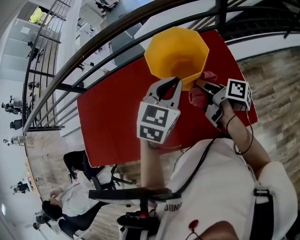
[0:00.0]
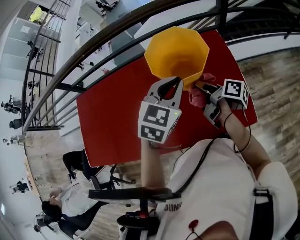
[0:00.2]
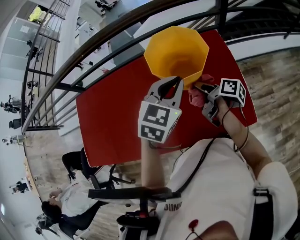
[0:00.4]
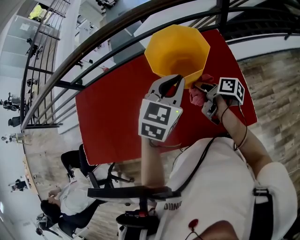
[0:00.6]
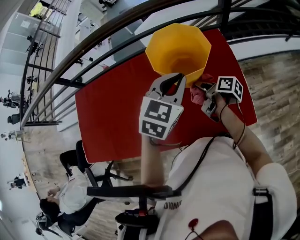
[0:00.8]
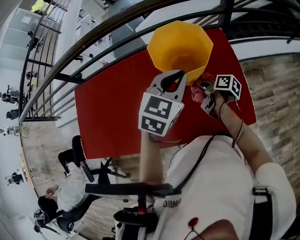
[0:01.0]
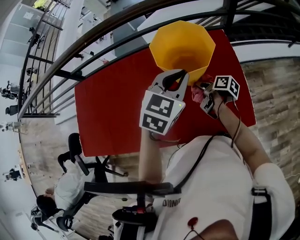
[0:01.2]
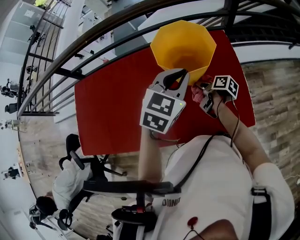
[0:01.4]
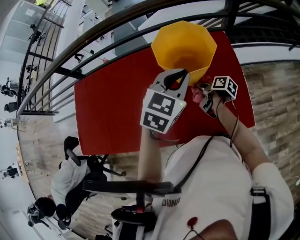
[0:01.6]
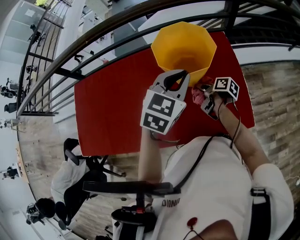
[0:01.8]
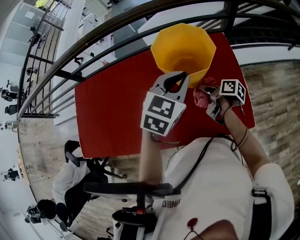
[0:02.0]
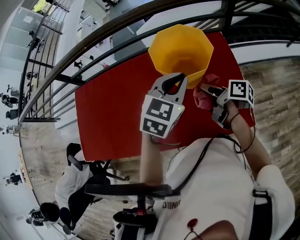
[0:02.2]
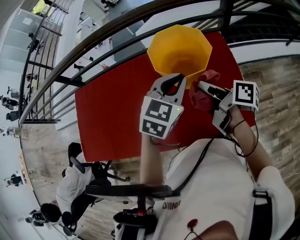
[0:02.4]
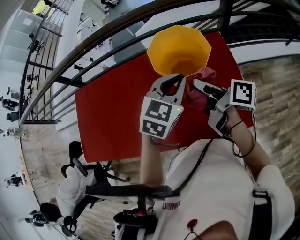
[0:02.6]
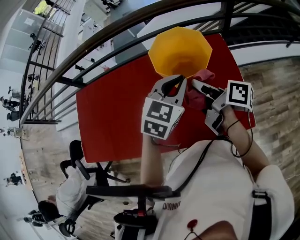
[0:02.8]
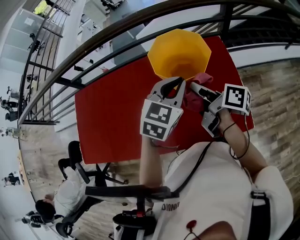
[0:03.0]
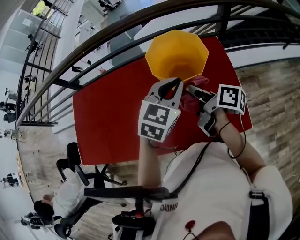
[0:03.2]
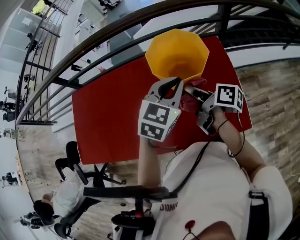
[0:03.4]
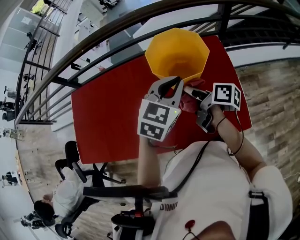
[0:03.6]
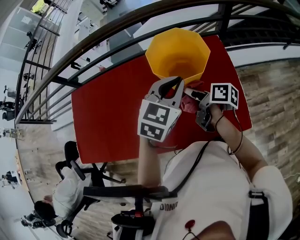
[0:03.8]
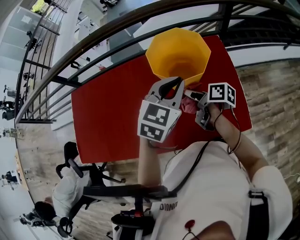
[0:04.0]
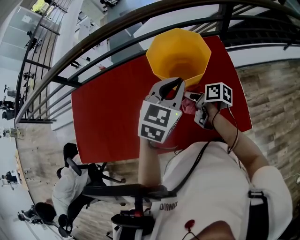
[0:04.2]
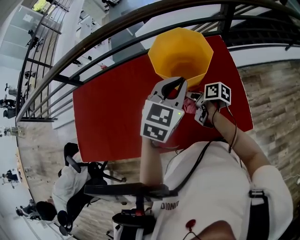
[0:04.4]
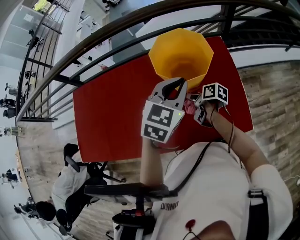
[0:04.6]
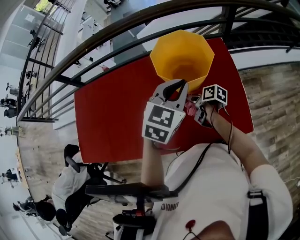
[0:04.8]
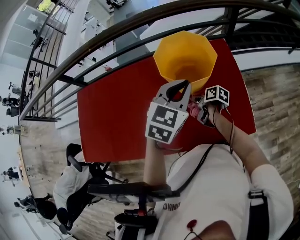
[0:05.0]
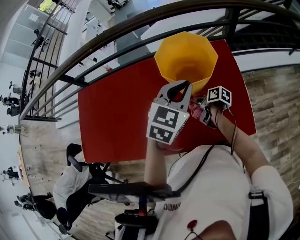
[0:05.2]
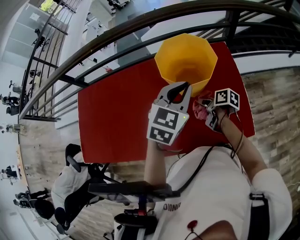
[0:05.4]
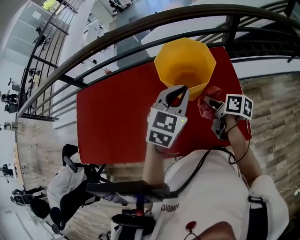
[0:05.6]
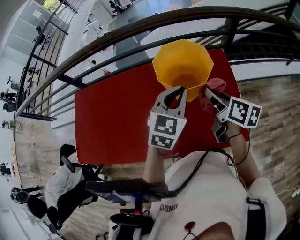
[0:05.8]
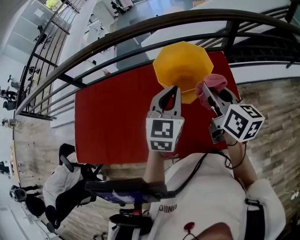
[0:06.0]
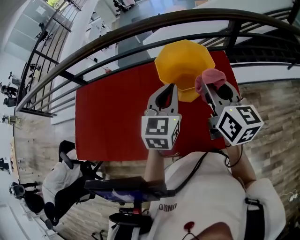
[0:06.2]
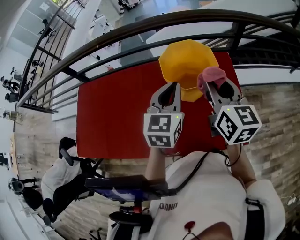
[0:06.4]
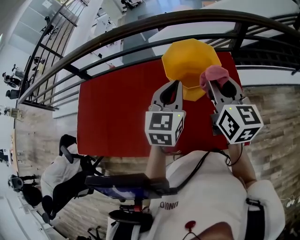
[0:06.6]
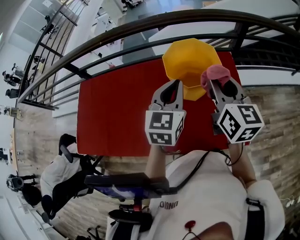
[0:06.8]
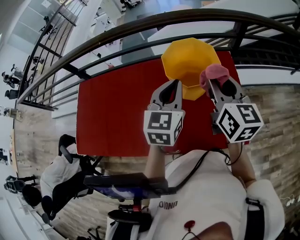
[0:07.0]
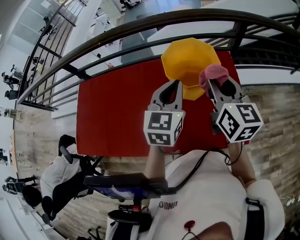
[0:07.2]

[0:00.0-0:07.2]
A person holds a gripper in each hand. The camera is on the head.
0.0 to 1.4 s: The right gripper shifts some 15 cm downward, and turns by roughly 20 degrees.
1.4 to 2.8 s: The right gripper is displaced upward by some 20 cm, and changes its angle by approximately 30 degrees.
2.8 to 4.4 s: The right gripper goes approximately 15 cm downward, and turns by approximately 20 degrees.
4.4 to 5.8 s: The right gripper moves upward and to the right, roughly 20 cm, and rotates about 30 degrees.
5.8 to 7.2 s: The right gripper heads upward, covering roughly 10 cm, and rotates about 40 degrees.

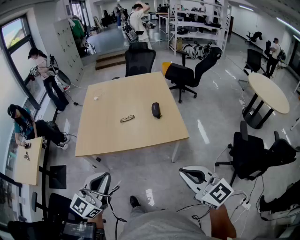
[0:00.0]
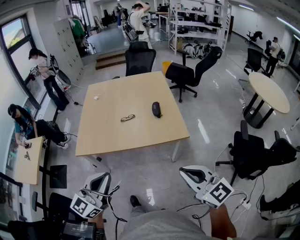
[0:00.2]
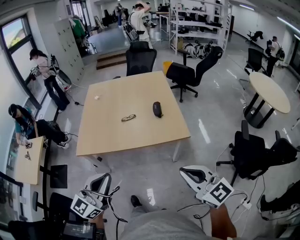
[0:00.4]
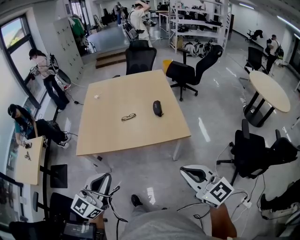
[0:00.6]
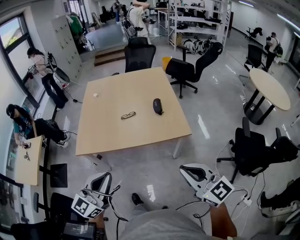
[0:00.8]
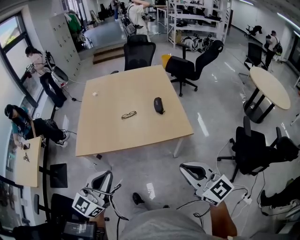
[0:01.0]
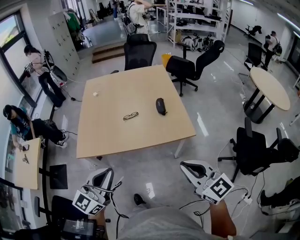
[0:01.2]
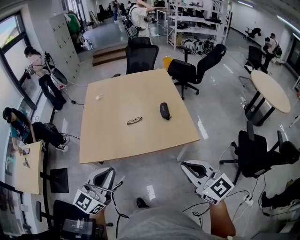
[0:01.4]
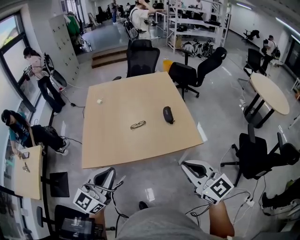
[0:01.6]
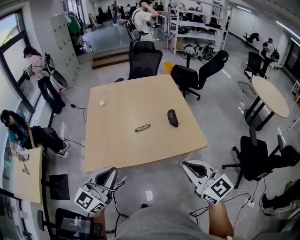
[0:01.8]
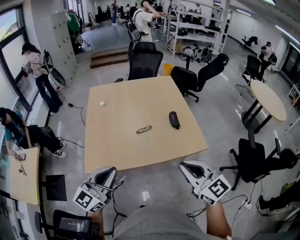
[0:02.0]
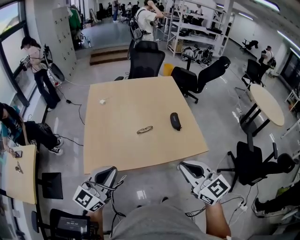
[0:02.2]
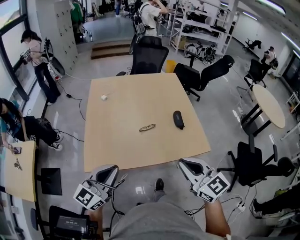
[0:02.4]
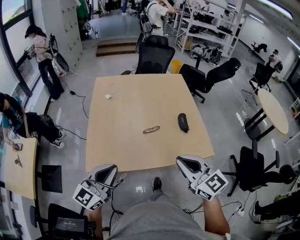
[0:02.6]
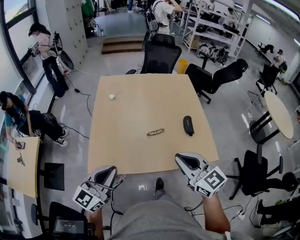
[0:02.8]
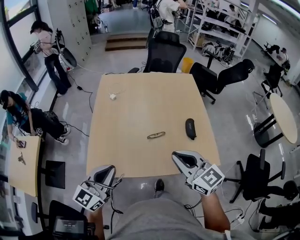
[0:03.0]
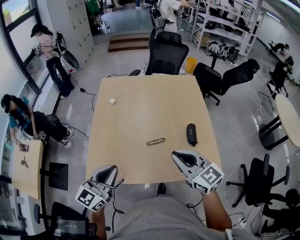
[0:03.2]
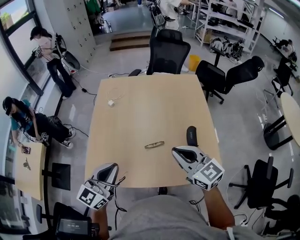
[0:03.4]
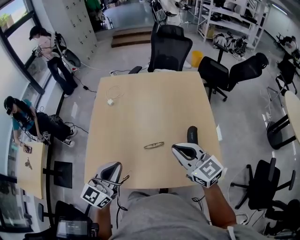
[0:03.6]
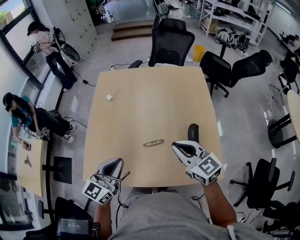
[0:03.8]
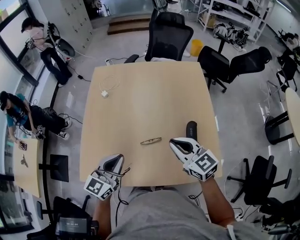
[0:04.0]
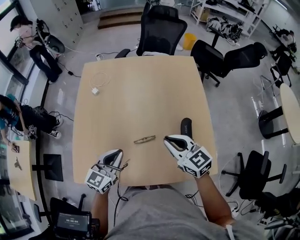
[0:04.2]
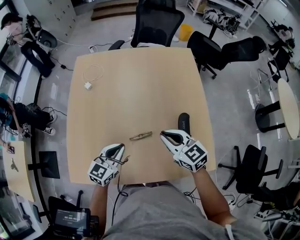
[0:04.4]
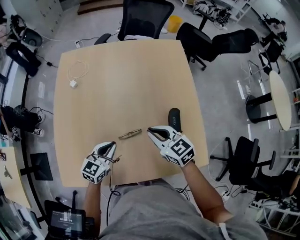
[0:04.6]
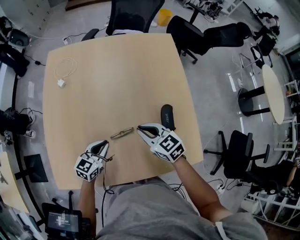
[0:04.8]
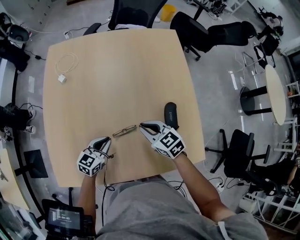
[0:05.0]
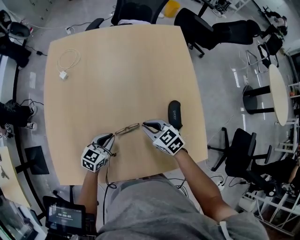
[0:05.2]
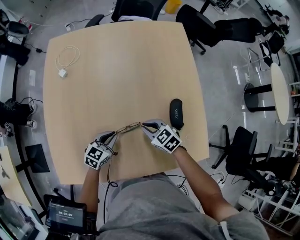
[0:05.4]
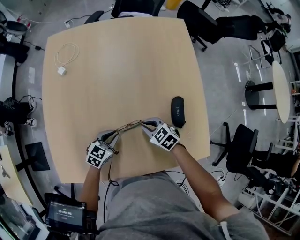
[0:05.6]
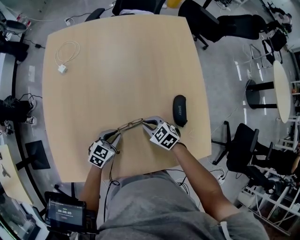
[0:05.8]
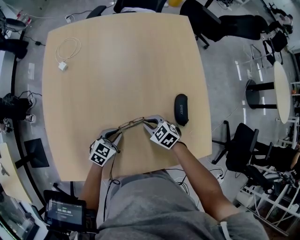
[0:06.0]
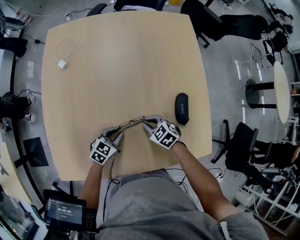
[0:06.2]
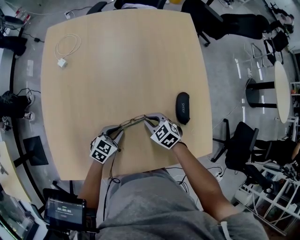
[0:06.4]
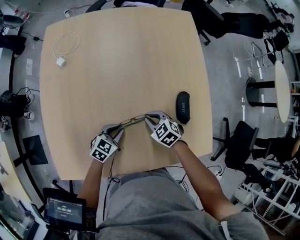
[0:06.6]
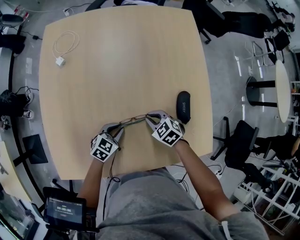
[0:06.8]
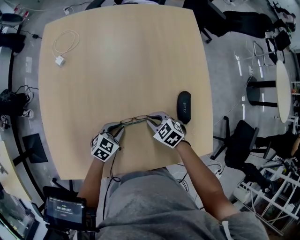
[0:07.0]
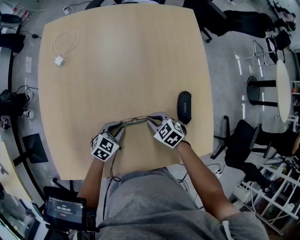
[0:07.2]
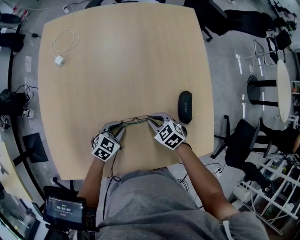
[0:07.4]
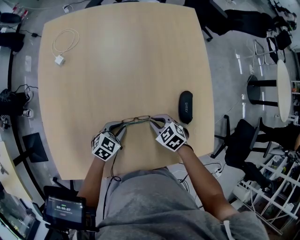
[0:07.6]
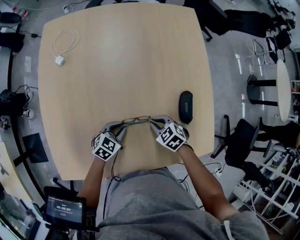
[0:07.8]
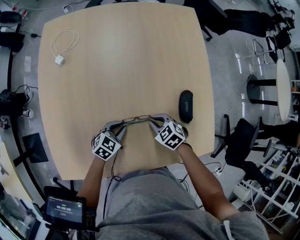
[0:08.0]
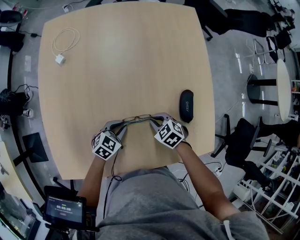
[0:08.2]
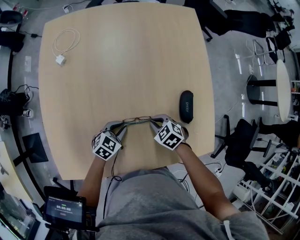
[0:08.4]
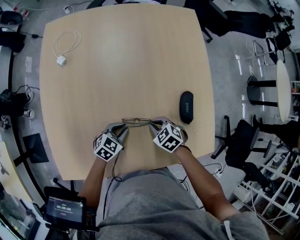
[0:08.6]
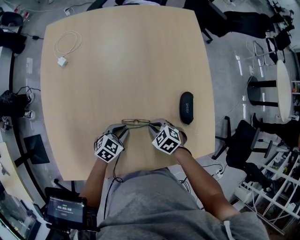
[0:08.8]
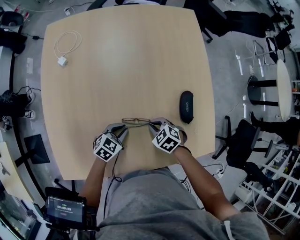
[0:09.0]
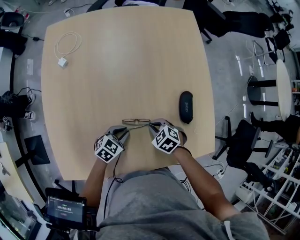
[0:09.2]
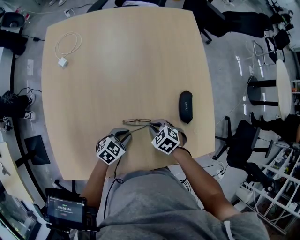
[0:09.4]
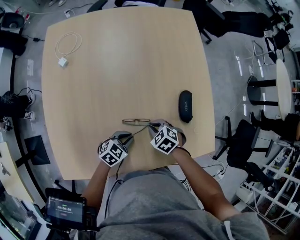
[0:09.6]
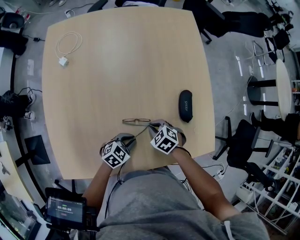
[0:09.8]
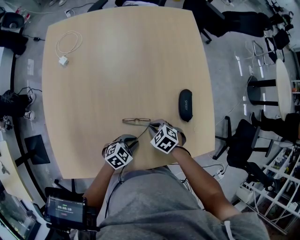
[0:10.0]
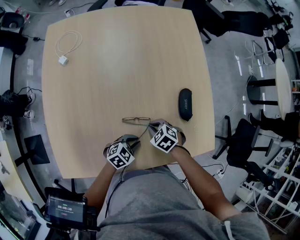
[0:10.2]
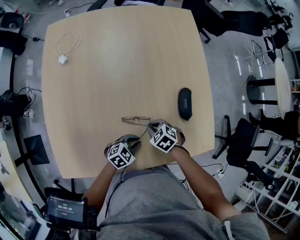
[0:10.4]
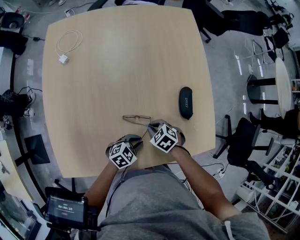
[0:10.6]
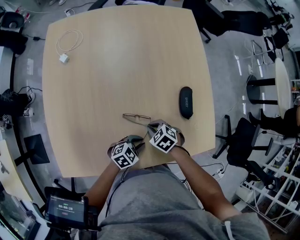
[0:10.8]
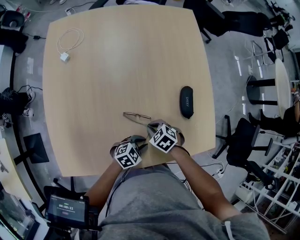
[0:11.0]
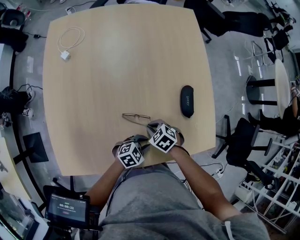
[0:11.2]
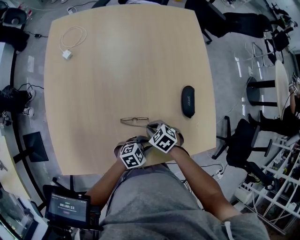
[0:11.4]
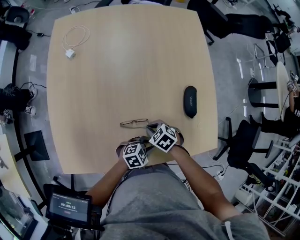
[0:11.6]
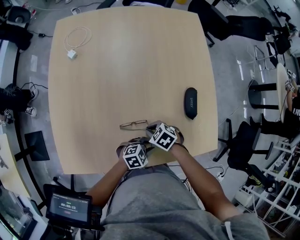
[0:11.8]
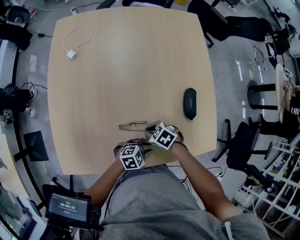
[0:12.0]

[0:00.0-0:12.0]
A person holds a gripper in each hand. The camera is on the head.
0.0 to 1.6 s: The grippers both shift forward and to the left by approximately 20 cm.
1.6 to 3.0 s: Both grippers move forward and to the left, about 25 cm.
3.0 to 4.4 s: The grippers both shift forward, downward and to the right by about 30 cm. The left gripper swivels some 20 degrees.
4.4 to 6.0 s: Both grippers travel together downward, about 20 cm. The left gripper turns by approximately 30 degrees, while the right gripper turns by about 30 degrees.
6.0 to 9.0 s: There are only small adjustments of the grippers.
9.0 to 10.4 s: The left gripper shifts by approximately 10 cm.
10.4 to 12.0 s: The left gripper changes place by about 5 cm. Meanwhile the right gripper changes place by about 5 cm.

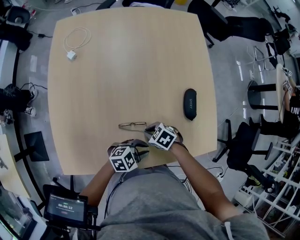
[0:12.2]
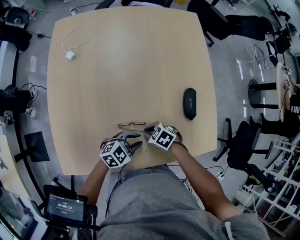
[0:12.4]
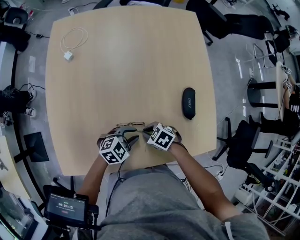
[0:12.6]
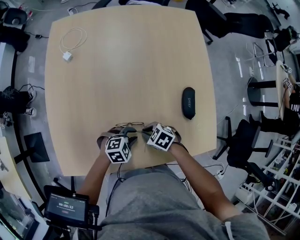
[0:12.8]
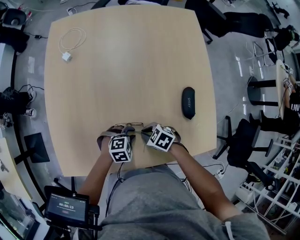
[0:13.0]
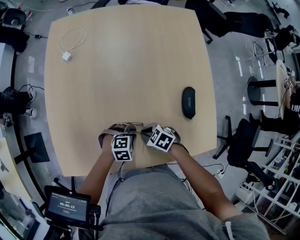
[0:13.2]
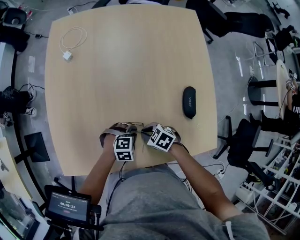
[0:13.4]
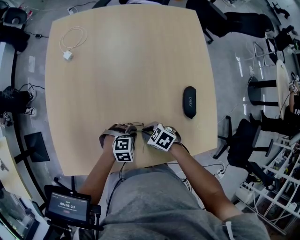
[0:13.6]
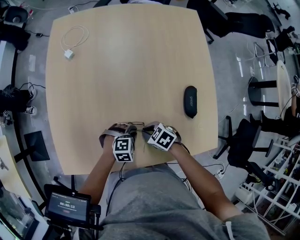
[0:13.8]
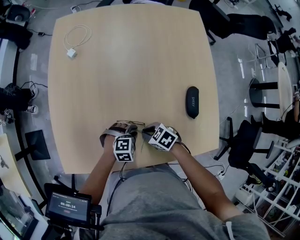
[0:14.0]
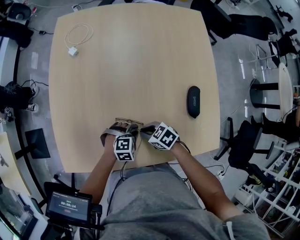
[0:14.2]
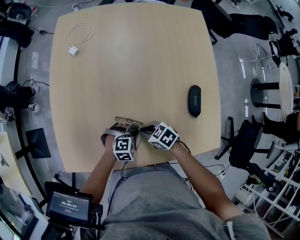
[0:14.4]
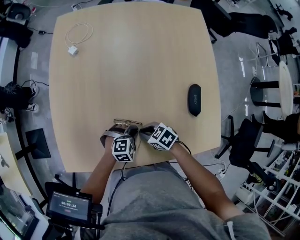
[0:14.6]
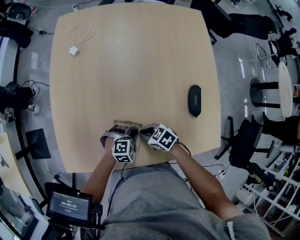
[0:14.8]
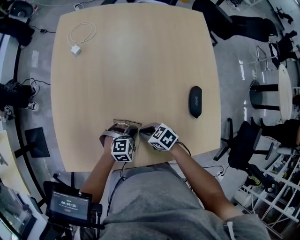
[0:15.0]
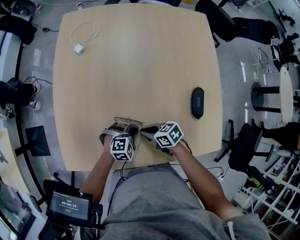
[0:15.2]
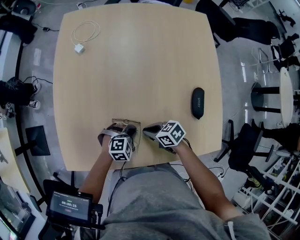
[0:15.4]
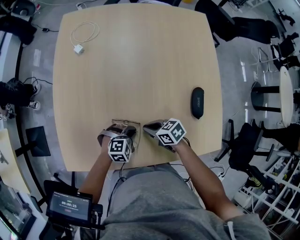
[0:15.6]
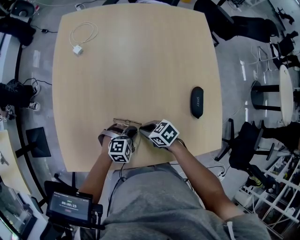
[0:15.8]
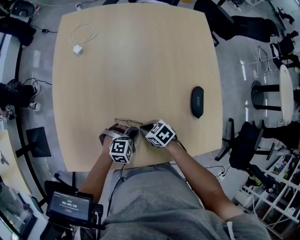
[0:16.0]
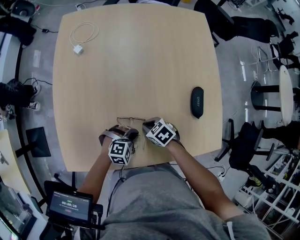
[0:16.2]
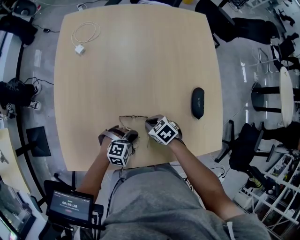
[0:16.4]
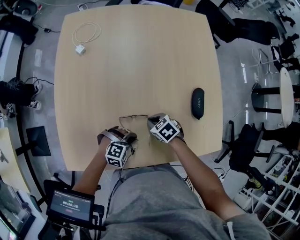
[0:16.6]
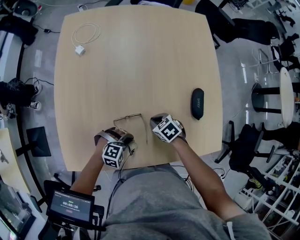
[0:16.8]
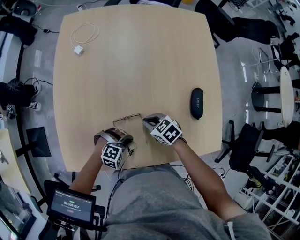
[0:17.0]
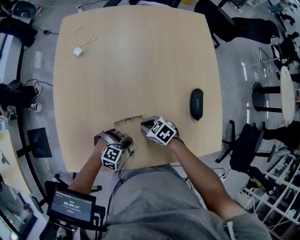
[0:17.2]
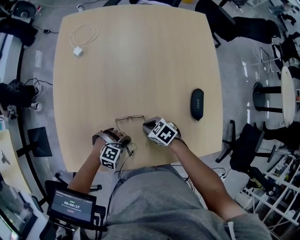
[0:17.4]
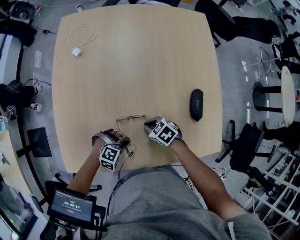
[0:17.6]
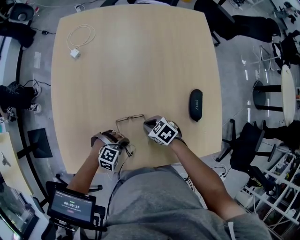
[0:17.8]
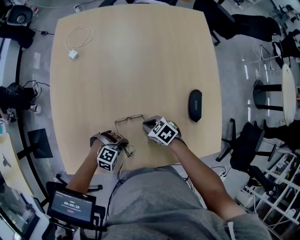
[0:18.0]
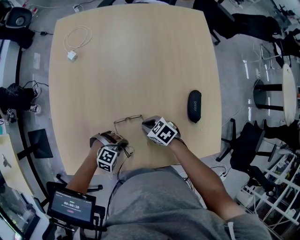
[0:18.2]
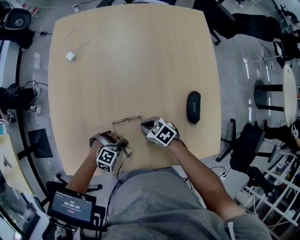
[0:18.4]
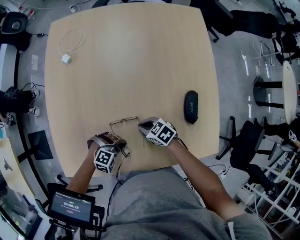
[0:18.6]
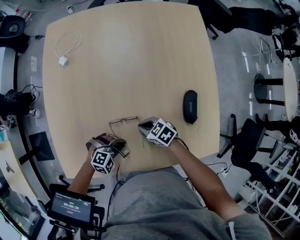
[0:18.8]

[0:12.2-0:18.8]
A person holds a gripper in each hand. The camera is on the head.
12.2 to 13.8 s: The left gripper ends up roughly 10 cm from where it was, and rotates about 30 degrees.
13.8 to 15.4 s: The right gripper swivels some 20 degrees.
15.4 to 17.2 s: The right gripper swivels about 20 degrees. Meanwhile the left gripper changes place by roughly 5 cm, and turns by approximately 20 degrees.
17.2 to 18.8 s: The grippers stay close to where they were, moving slightly.
